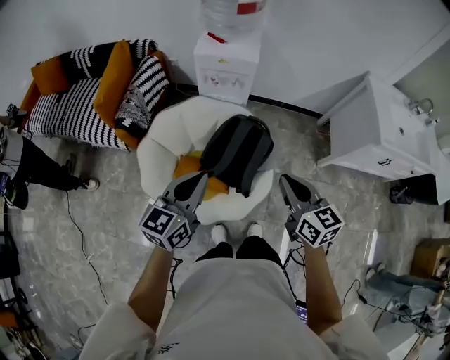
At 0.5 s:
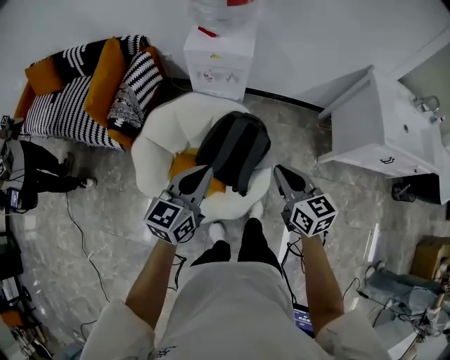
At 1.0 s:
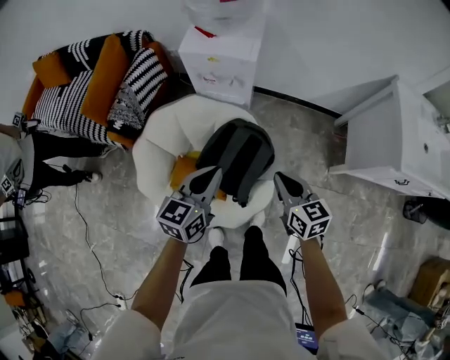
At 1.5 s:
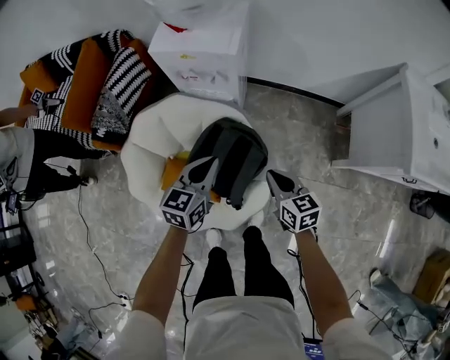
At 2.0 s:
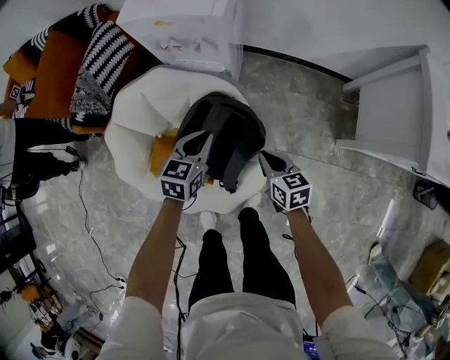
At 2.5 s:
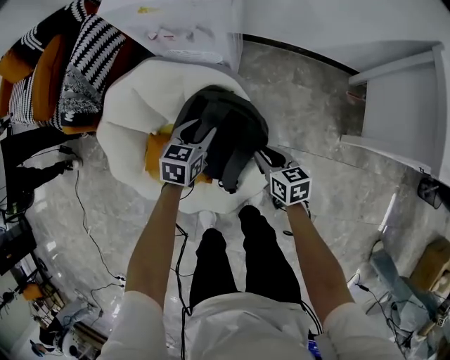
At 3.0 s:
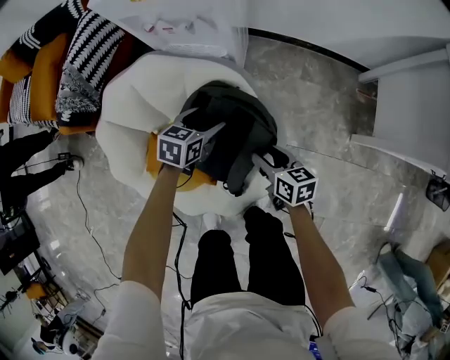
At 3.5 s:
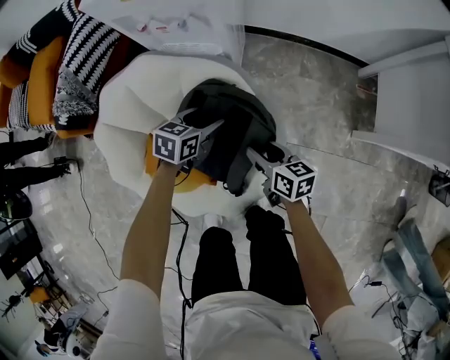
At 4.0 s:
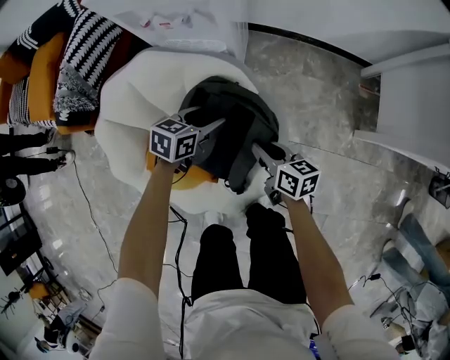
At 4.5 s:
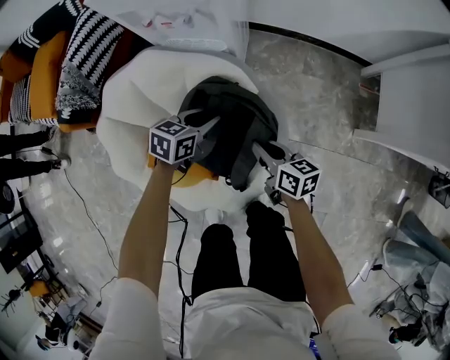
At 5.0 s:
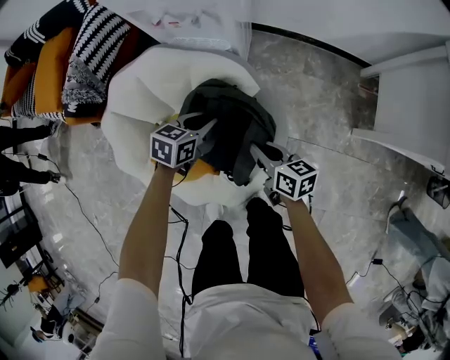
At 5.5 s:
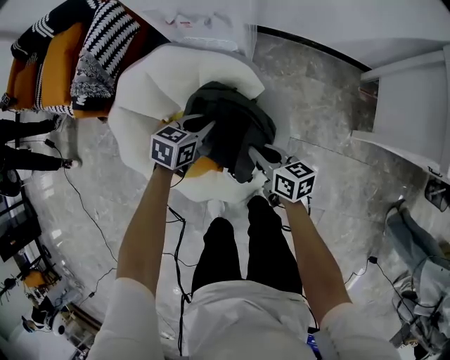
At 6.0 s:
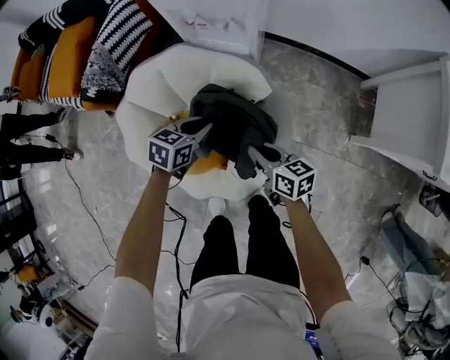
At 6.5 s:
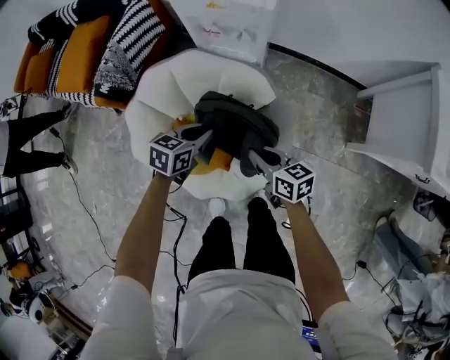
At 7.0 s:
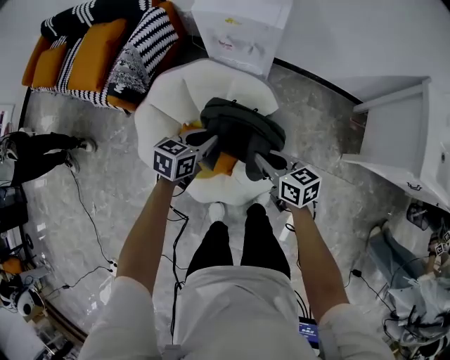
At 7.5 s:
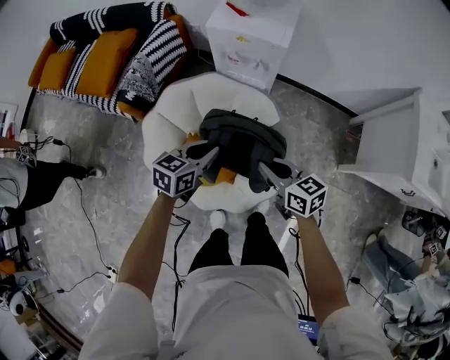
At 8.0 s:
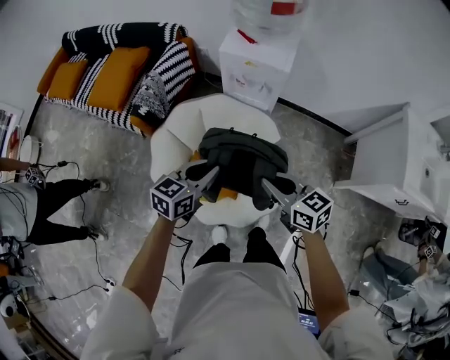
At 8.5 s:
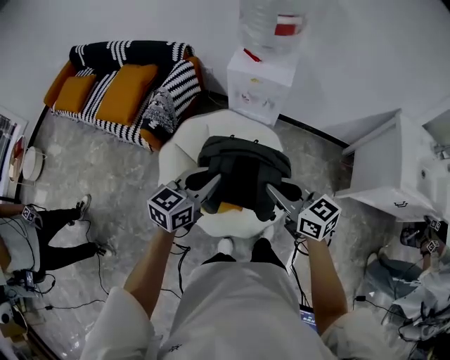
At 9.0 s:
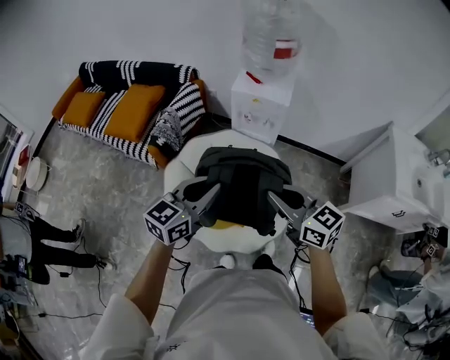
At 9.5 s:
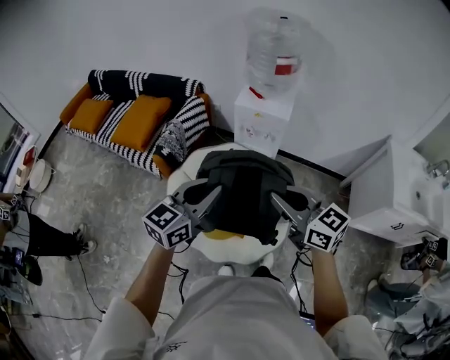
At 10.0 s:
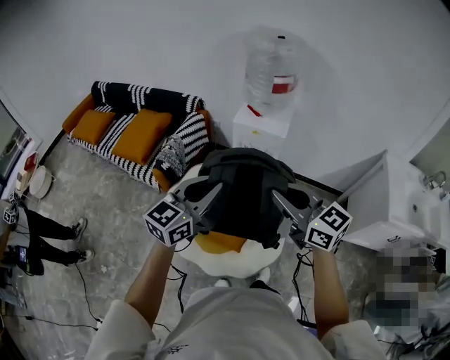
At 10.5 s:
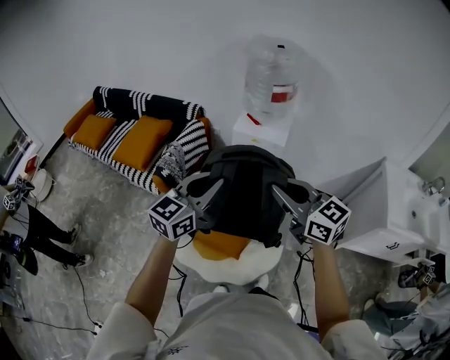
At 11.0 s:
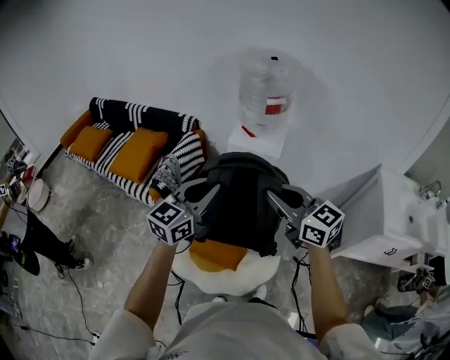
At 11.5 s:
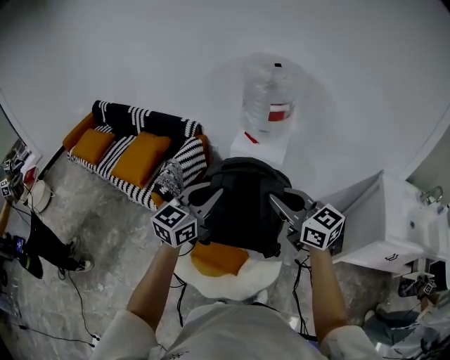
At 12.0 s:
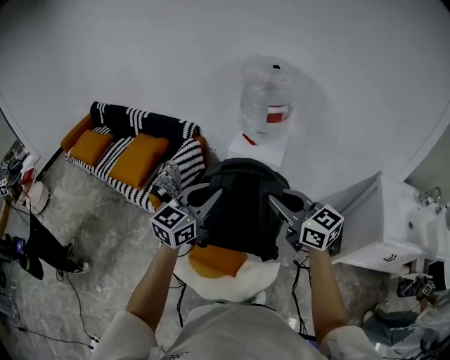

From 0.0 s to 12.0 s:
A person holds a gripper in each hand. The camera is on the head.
From 0.0 s to 2.0 s: The right gripper travels downward and forward by about 40 cm, and changes its angle by about 20 degrees, while the left gripper shifts roughly 40 cm downward, forward and to the right, and rotates some 30 degrees.
From 2.0 s to 4.0 s: The left gripper heads downward, covering about 15 cm, turns by some 20 degrees, and opens its fingers, while the right gripper goes roughly 10 cm downward, changes its angle by approximately 20 degrees, and opens and closes again.
From 4.0 s to 6.0 s: The right gripper moves upward and to the left, about 10 cm; the left gripper goes about 15 cm upward, to the left and backward, and closes its fingers.
From 6.0 s to 8.0 s: The two grippers go approximately 25 cm upward. The right gripper rotates approximately 20 degrees; the left gripper turns by about 20 degrees.
From 8.0 s to 10.0 s: Both grippers move upward, about 25 cm. The right gripper swivels some 20 degrees; the left gripper changes its angle by approximately 30 degrees.
From 10.0 s to 12.0 s: Both grippers move forward, about 5 cm.

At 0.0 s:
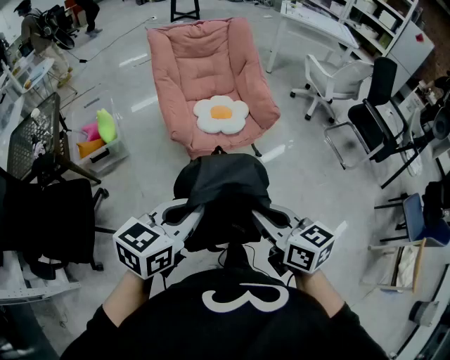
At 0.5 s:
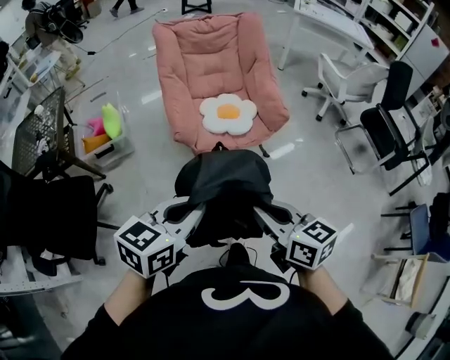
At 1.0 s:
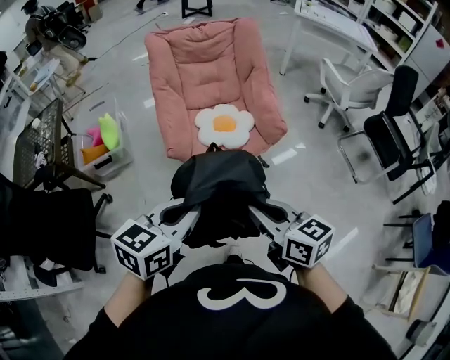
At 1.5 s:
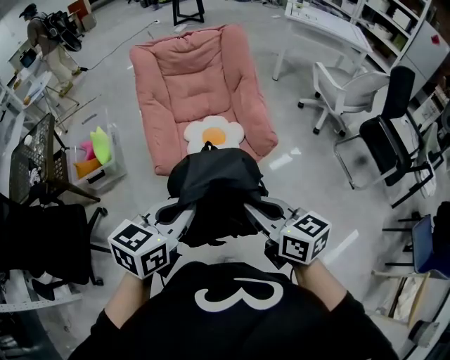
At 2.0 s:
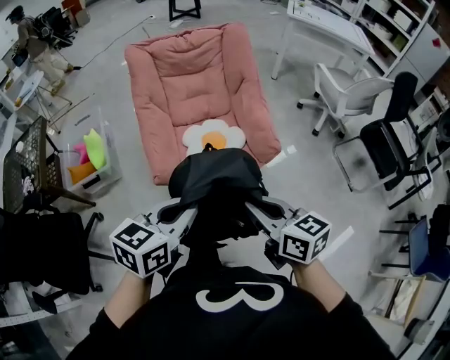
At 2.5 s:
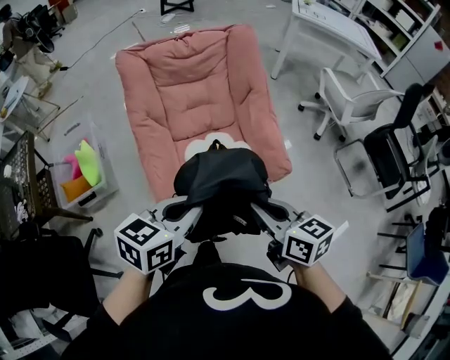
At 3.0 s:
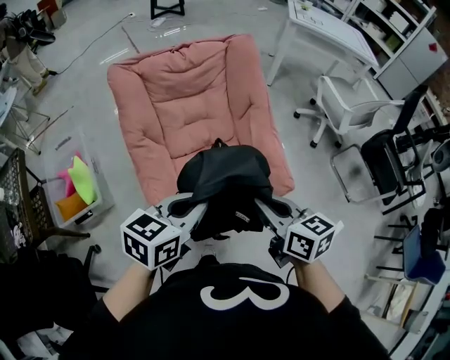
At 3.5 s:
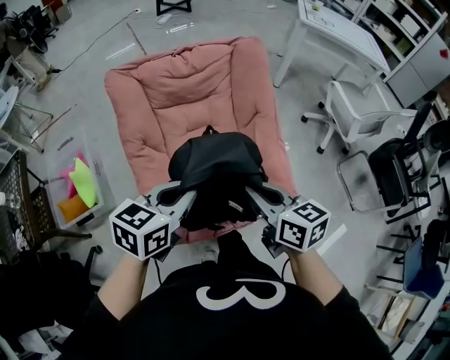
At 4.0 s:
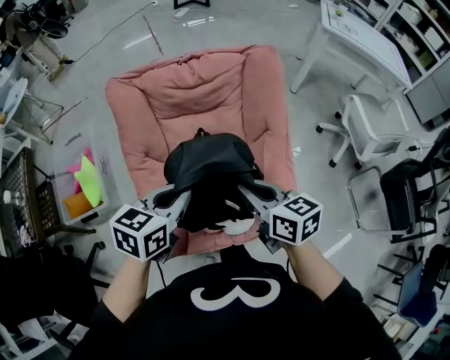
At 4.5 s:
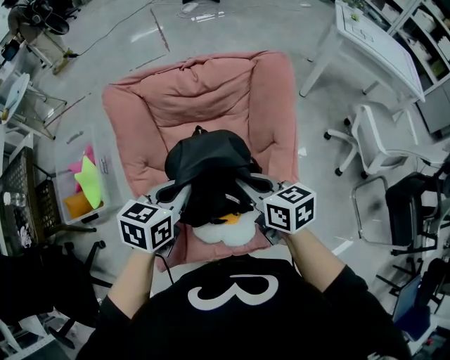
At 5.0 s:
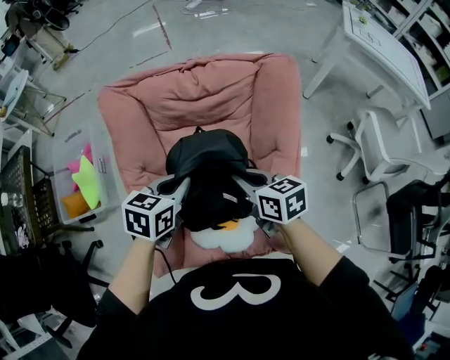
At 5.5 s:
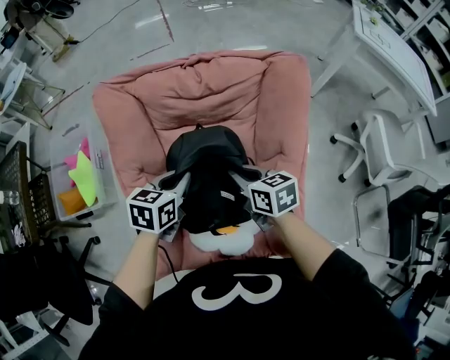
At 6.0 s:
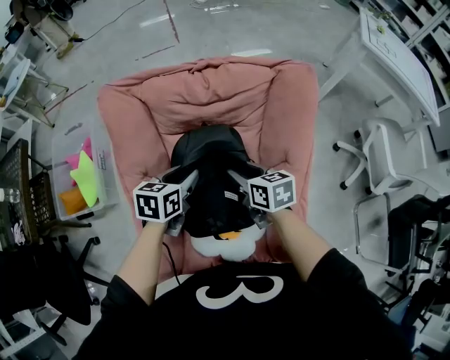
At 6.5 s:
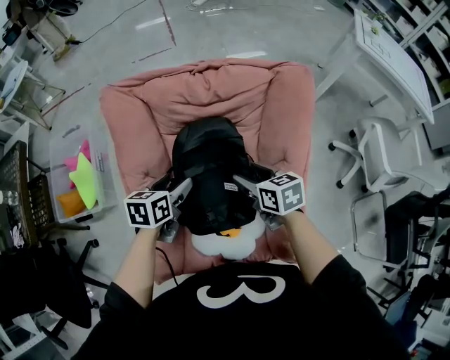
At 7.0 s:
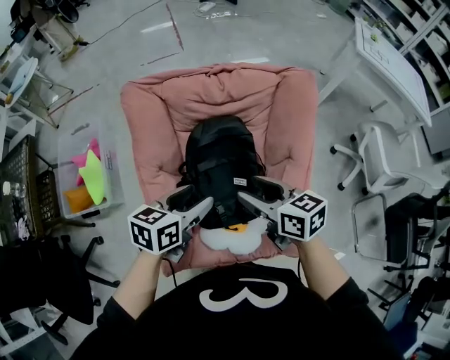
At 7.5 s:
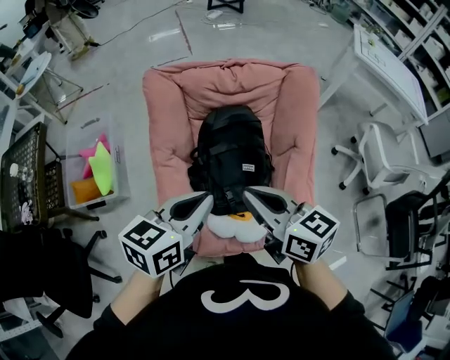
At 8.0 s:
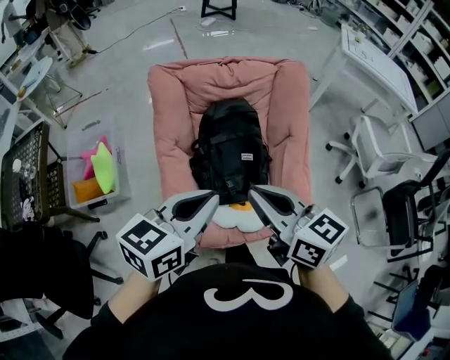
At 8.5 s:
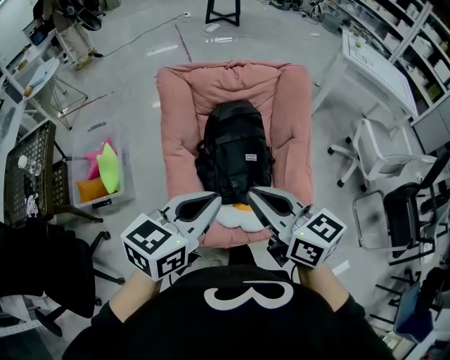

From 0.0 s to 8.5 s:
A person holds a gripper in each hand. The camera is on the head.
From 0.0 s to 2.0 s: Both grippers move forward, some 30 cm.
From 2.0 s to 4.0 s: The pair of grippers is taken forward, about 40 cm.
From 4.0 s to 6.5 s: Both grippers travel together forward and downward, some 25 cm. The right gripper opens. Meanwhile the left gripper rotates approximately 20 degrees, and opens its fingers.
From 6.5 s to 8.5 s: The right gripper heads backward, upward and to the left, covering about 40 cm, changes its angle by some 30 degrees, and closes, while the left gripper travels backward and upward by some 40 cm, swivels some 30 degrees, and closes.

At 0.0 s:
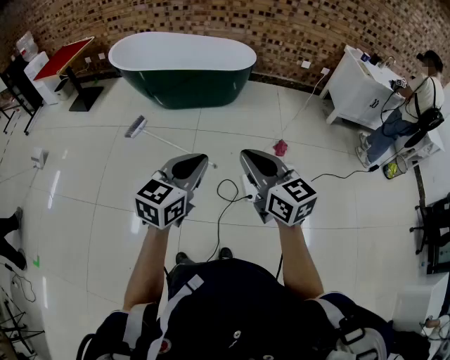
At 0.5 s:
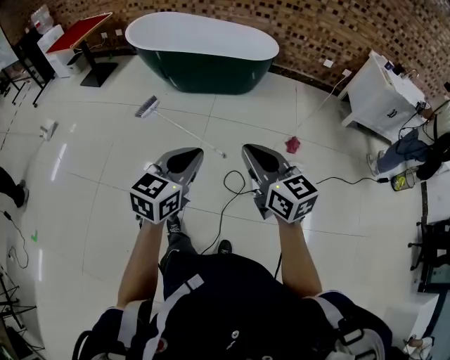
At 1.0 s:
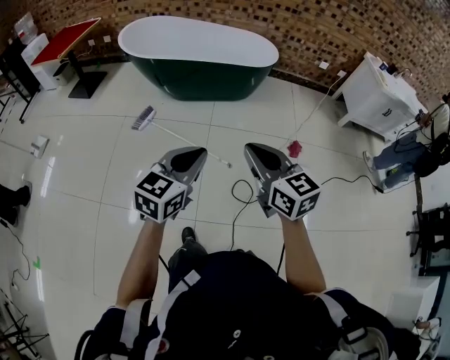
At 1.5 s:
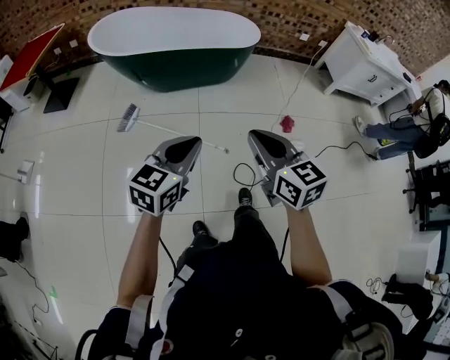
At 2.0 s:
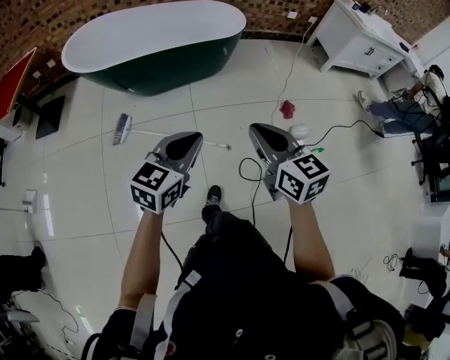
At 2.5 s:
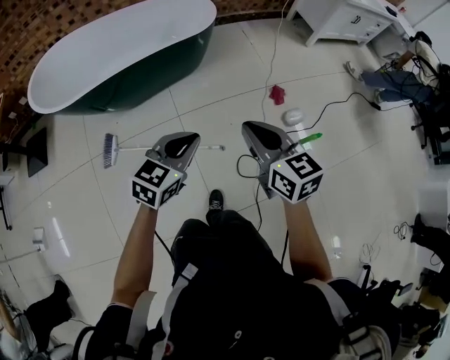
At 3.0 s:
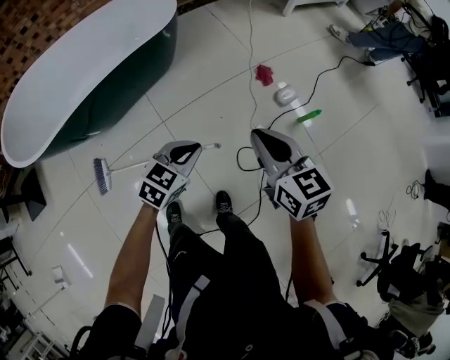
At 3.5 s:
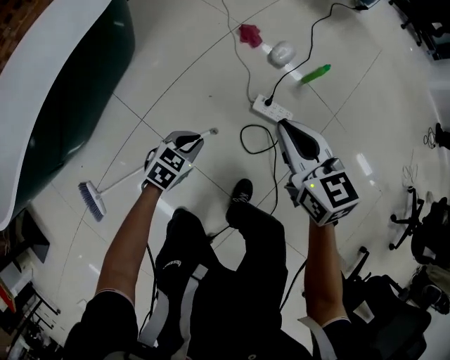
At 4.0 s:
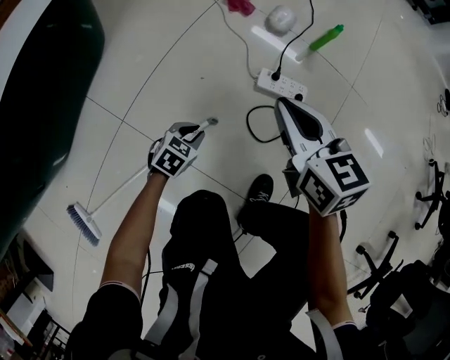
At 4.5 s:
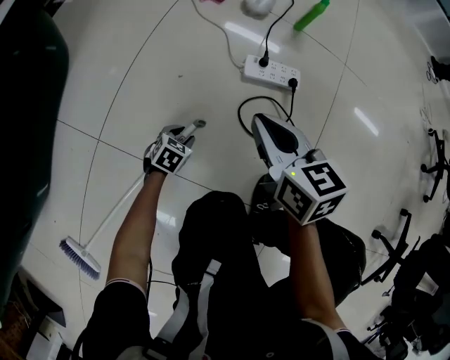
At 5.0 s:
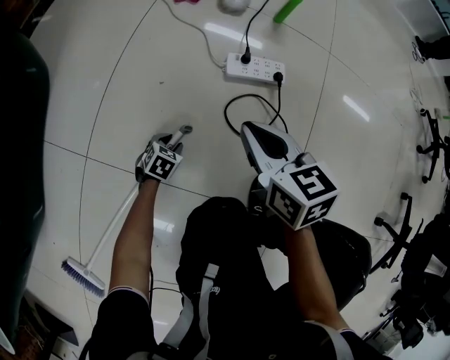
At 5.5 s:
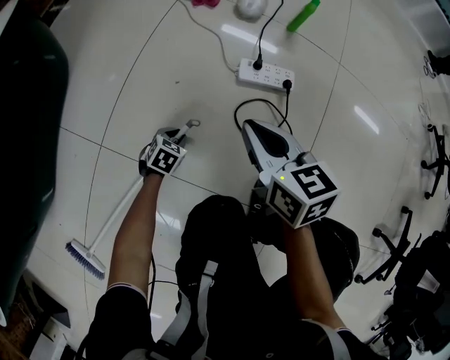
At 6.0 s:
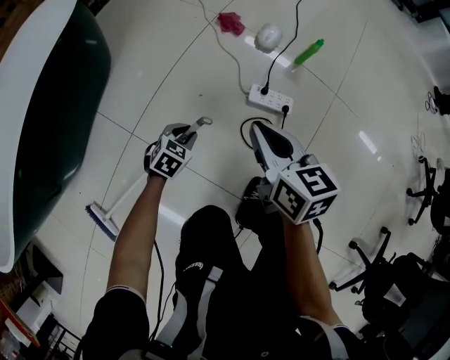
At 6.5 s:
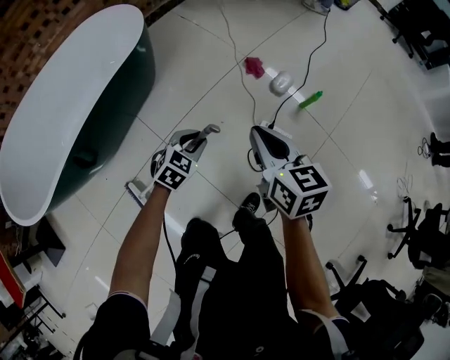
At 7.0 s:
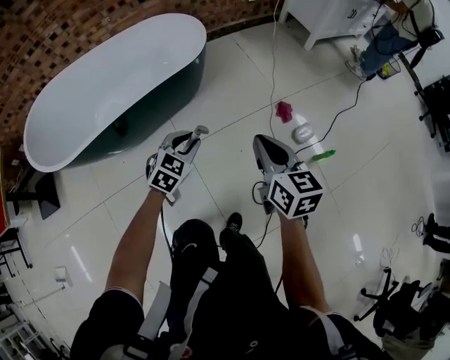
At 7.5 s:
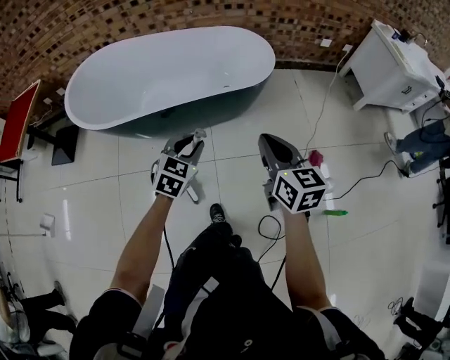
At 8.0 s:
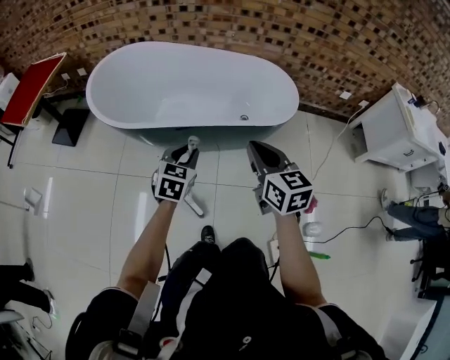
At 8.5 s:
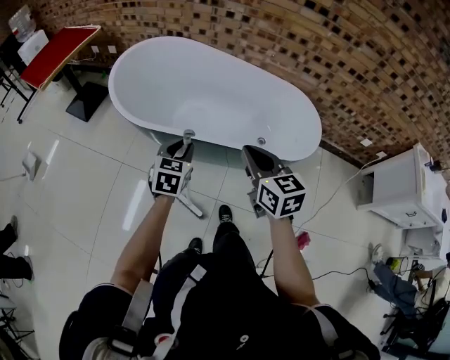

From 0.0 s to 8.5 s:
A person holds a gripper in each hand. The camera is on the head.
From 0.0 s to 2.0 s: Both grippers move forward and to the left, approximately 30 cm. The right gripper rotates some 20 degrees.
From 2.0 s to 4.0 s: The left gripper moves downward, some 70 cm, and angles its fingers downward, by approximately 30 degrees, while the right gripper heads downward, covering about 50 cm, and changes its angle by approximately 50 degrees.
From 4.0 s to 6.5 s: Both grippers move upward, roughly 35 cm.
From 6.5 s to 8.5 s: The pair of grippers is taken approximately 50 cm. The left gripper changes its angle by approximately 90 degrees, while the right gripper turns by roughly 70 degrees.
